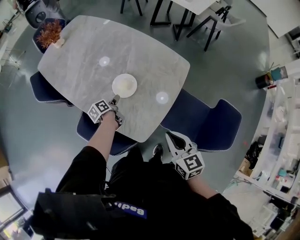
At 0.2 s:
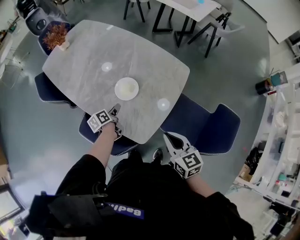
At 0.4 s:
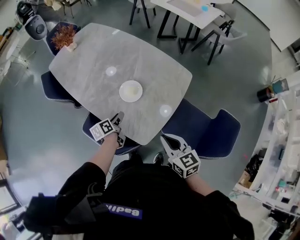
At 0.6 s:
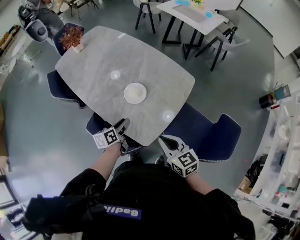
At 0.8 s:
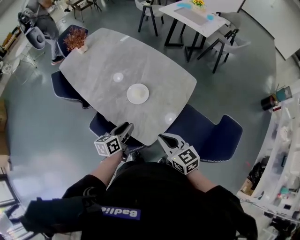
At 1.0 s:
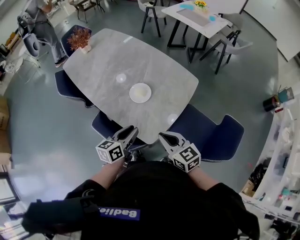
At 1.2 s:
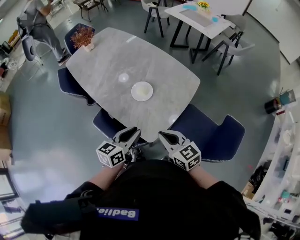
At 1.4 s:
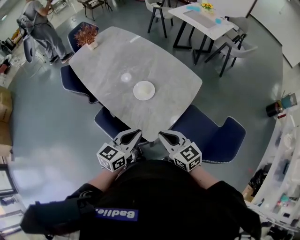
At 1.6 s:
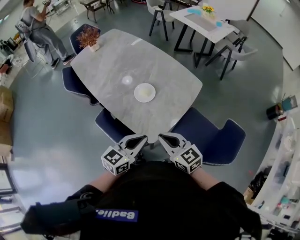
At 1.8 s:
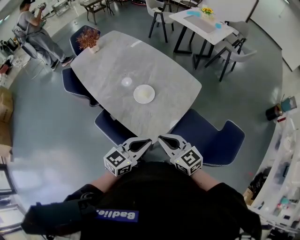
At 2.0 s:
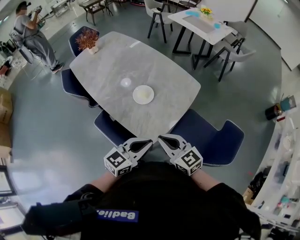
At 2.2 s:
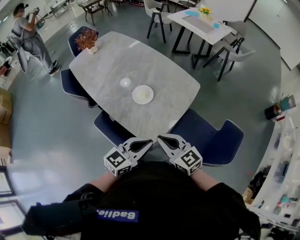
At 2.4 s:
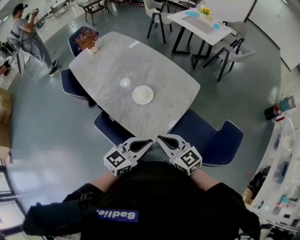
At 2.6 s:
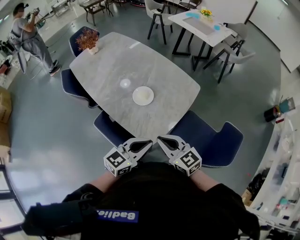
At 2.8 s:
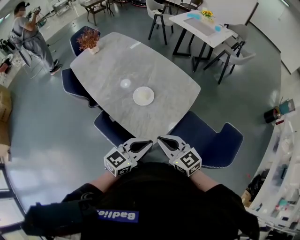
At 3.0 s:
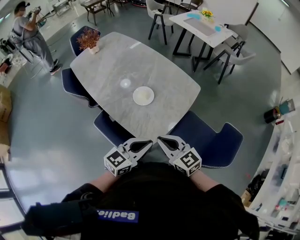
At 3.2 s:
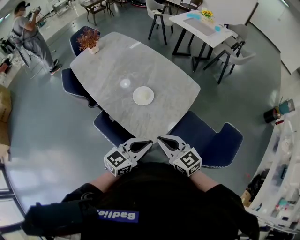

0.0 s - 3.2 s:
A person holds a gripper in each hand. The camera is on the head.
0.0 s - 1.6 s: The right gripper moves roughly 10 cm, and rotates roughly 30 degrees.

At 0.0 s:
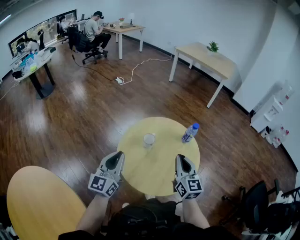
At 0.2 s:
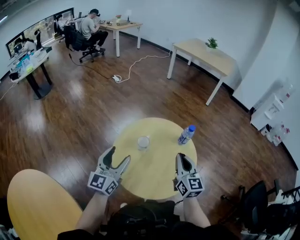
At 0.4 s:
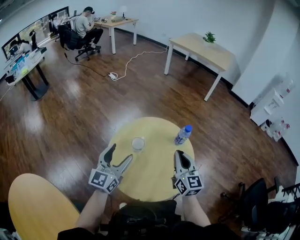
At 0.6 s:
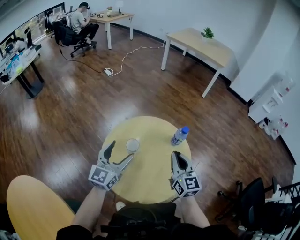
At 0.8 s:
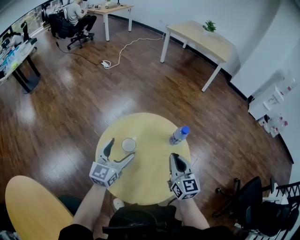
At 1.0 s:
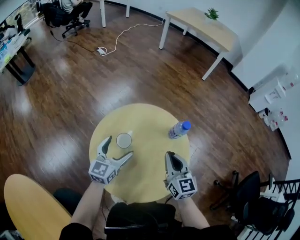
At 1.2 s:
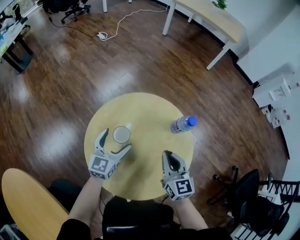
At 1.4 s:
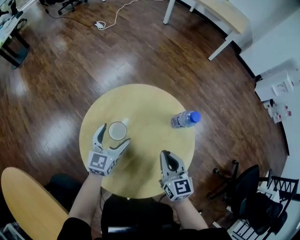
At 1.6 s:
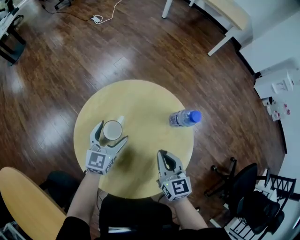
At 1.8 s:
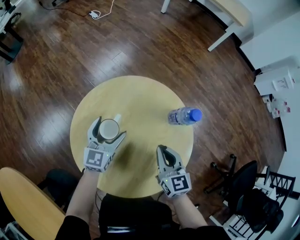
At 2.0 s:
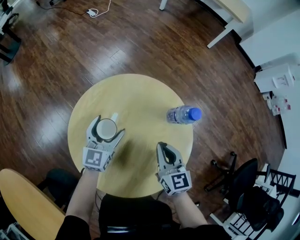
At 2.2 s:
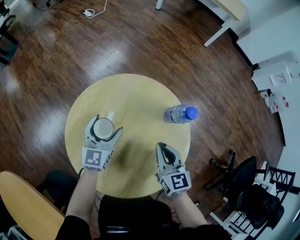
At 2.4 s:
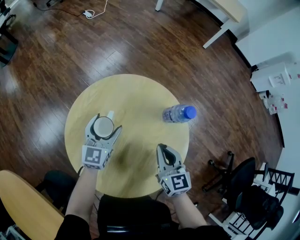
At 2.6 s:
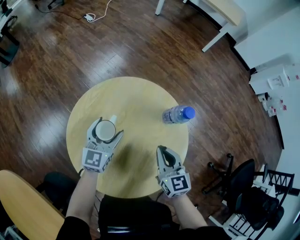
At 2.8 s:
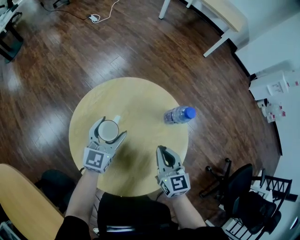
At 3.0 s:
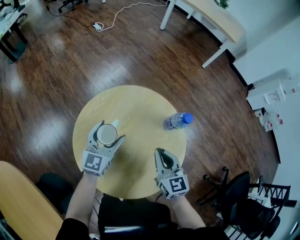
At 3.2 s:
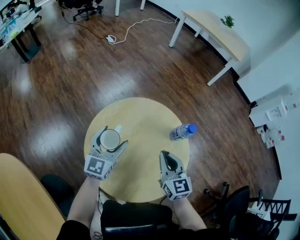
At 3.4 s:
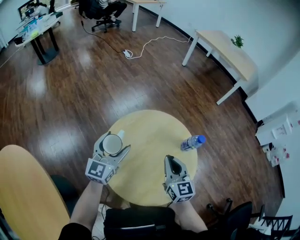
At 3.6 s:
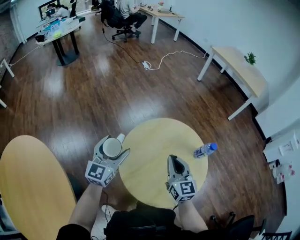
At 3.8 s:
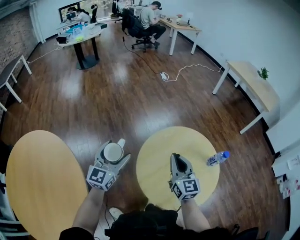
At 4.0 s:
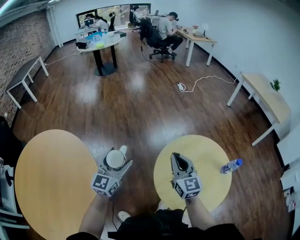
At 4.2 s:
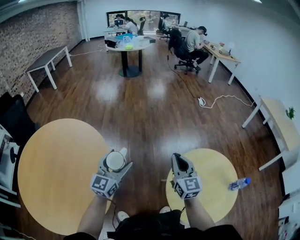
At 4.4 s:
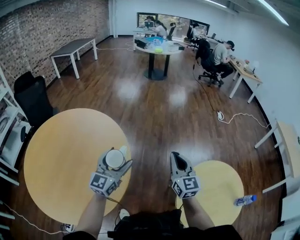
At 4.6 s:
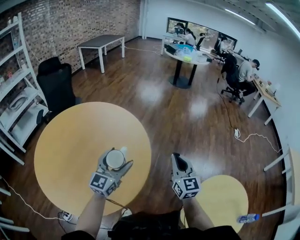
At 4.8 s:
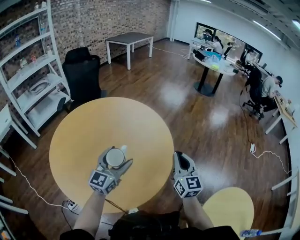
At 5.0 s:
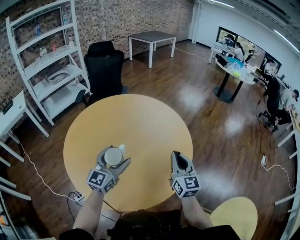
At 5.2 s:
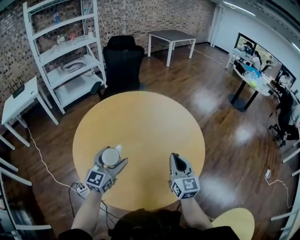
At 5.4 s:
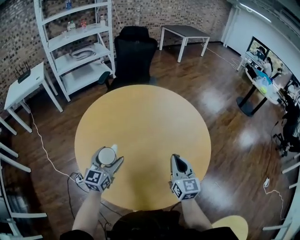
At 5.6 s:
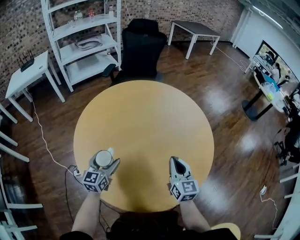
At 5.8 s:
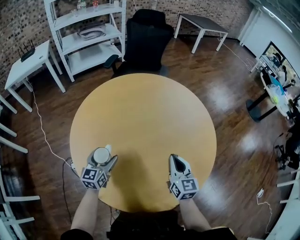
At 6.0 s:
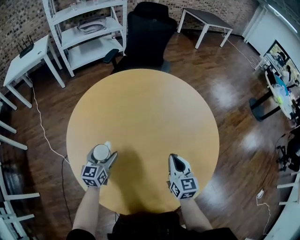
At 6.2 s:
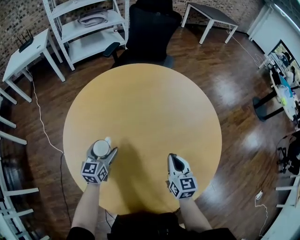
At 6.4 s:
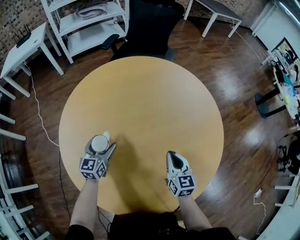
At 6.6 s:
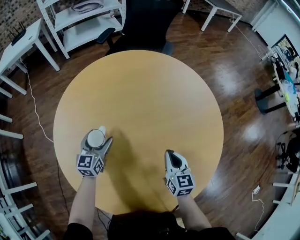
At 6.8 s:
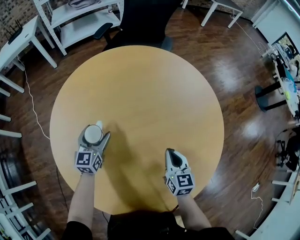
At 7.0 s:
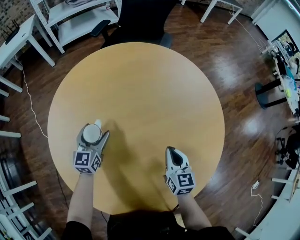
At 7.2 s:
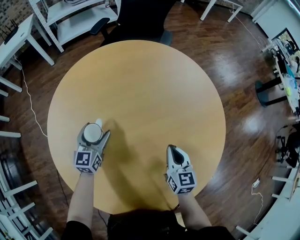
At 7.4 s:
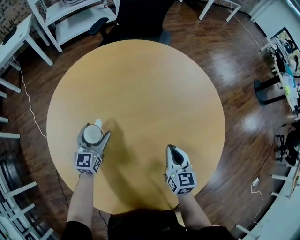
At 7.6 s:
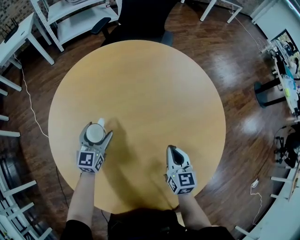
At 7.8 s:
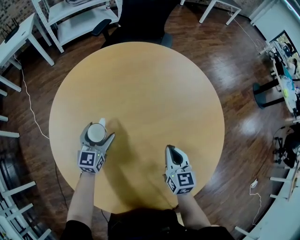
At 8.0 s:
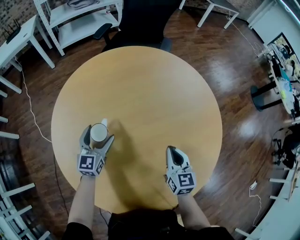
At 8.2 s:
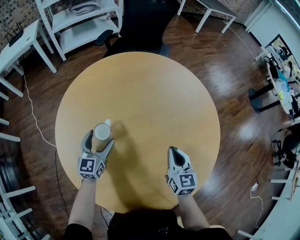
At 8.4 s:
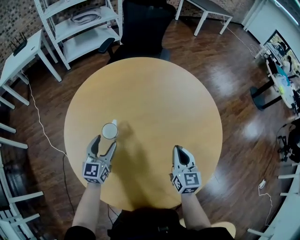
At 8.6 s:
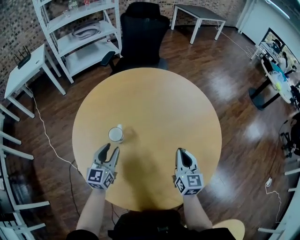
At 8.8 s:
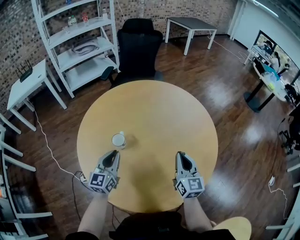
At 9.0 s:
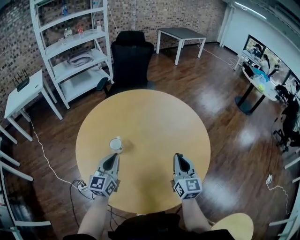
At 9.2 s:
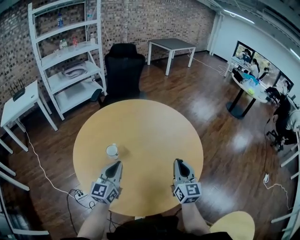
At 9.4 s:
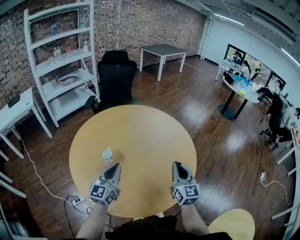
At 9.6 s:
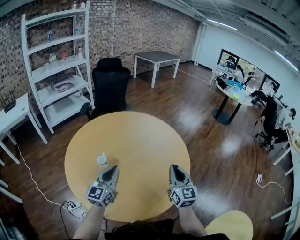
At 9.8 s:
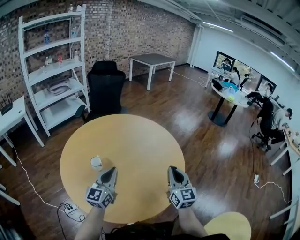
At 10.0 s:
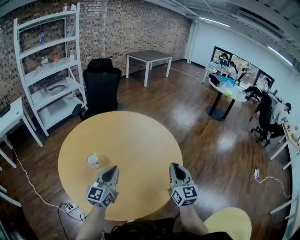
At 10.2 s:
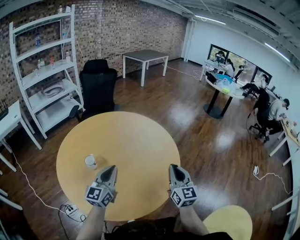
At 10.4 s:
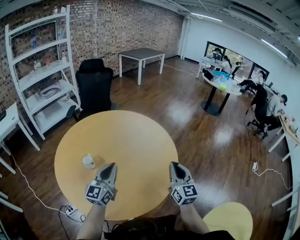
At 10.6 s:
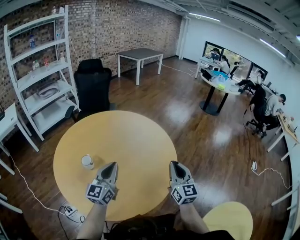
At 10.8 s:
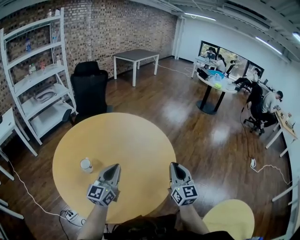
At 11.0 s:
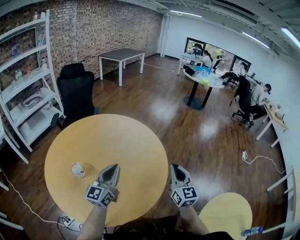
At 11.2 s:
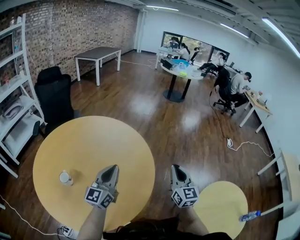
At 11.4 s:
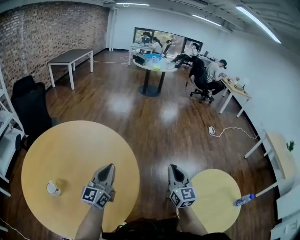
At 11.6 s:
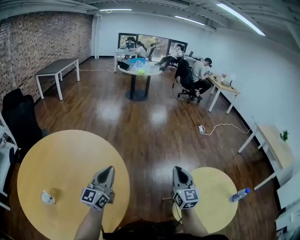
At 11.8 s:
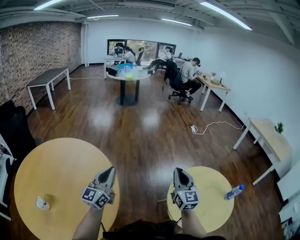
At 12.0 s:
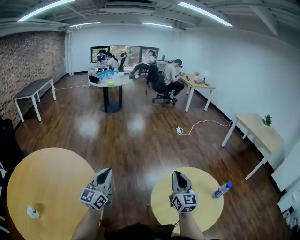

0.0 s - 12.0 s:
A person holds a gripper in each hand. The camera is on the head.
0.0 s - 1.6 s: The right gripper heads downward and forward, covering roughly 20 cm, and turns by about 20 degrees. The left gripper is displaced downward, forward and to the right by about 30 cm, rotates approximately 20 degrees, and opens up.
1.6 s - 3.0 s: There are only small adjustments of the grippers.
3.0 s - 4.4 s: The pair of grippers is taken roughly 50 cm. The left gripper swivels approximately 60 degrees. Meanwhile the right gripper changes its angle by some 60 degrees.
4.4 s - 6.0 s: Both grippers are carried about 50 cm. The left gripper changes its angle by some 70 degrees, while the right gripper rotates some 50 degrees.
6.0 s - 7.6 s: The right gripper is displaced downward by about 5 cm, while the left gripper moves forward, some 10 cm.
7.6 s - 9.0 s: The grippers both shift upward and backward by about 20 cm. The right gripper rotates about 30 degrees, while the left gripper changes its angle by some 20 degrees, and closes up.
9.0 s - 10.4 s: The left gripper shifts about 15 cm to the right and upward. Meanwhile the right gripper is displaced to the right and backward by some 15 cm.
10.4 s - 12.0 s: The right gripper changes place by approximately 50 cm, and changes its angle by some 50 degrees, while the left gripper moves about 40 cm, and changes its angle by some 50 degrees.

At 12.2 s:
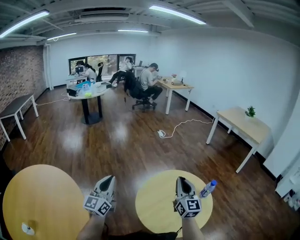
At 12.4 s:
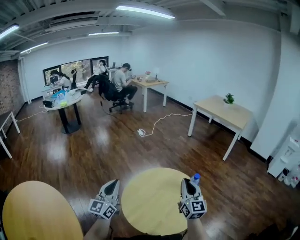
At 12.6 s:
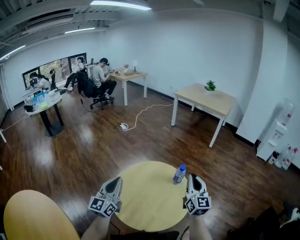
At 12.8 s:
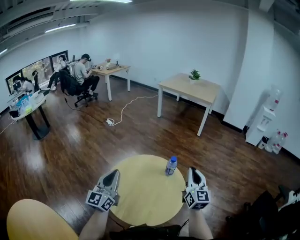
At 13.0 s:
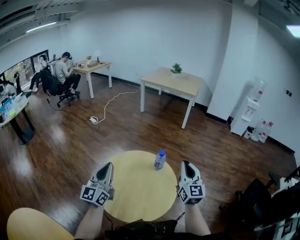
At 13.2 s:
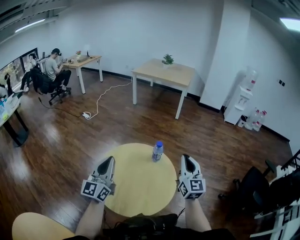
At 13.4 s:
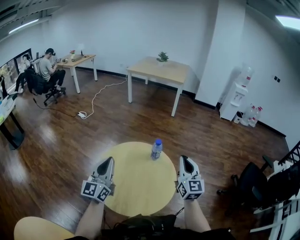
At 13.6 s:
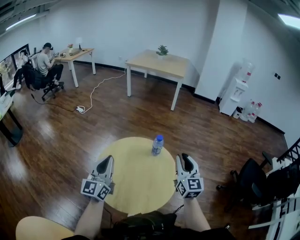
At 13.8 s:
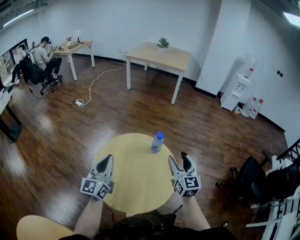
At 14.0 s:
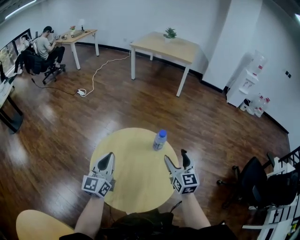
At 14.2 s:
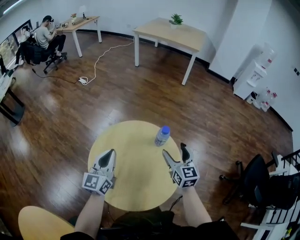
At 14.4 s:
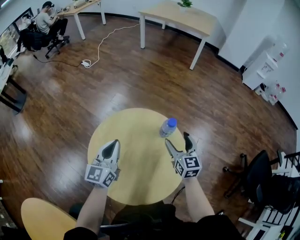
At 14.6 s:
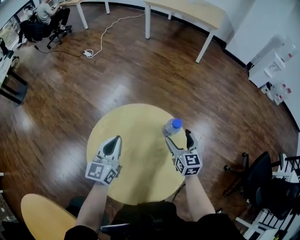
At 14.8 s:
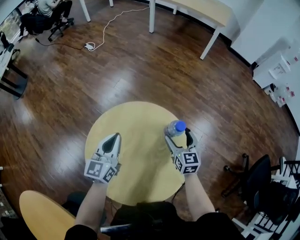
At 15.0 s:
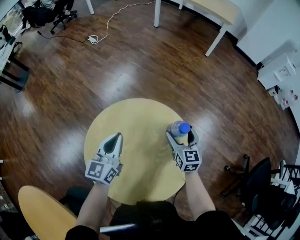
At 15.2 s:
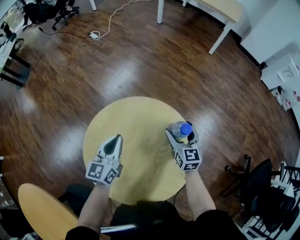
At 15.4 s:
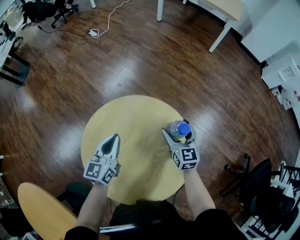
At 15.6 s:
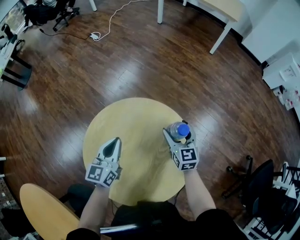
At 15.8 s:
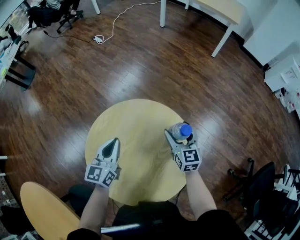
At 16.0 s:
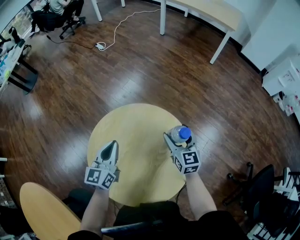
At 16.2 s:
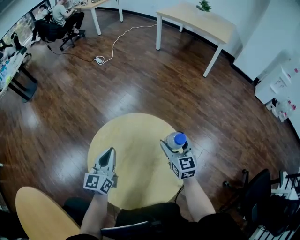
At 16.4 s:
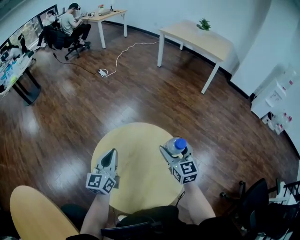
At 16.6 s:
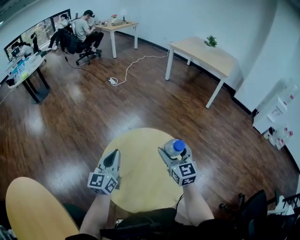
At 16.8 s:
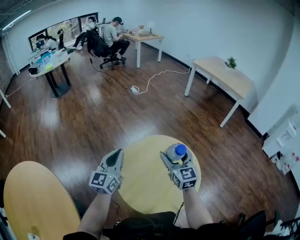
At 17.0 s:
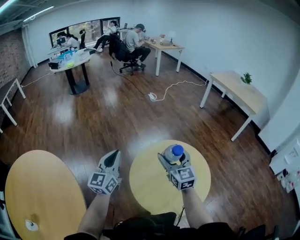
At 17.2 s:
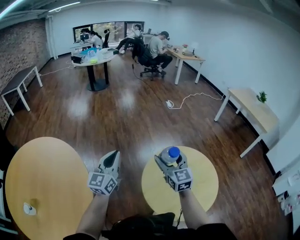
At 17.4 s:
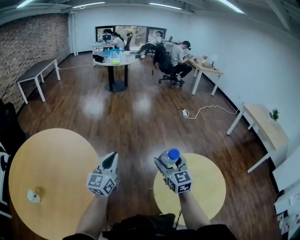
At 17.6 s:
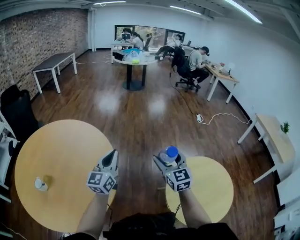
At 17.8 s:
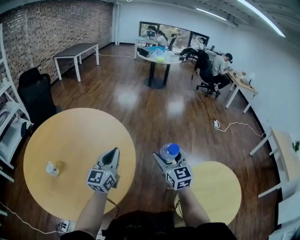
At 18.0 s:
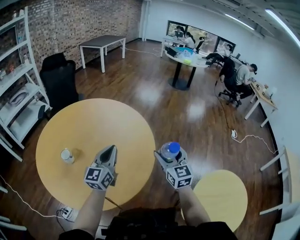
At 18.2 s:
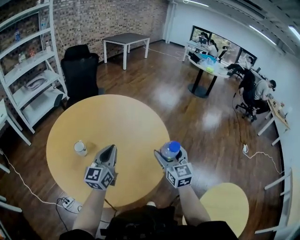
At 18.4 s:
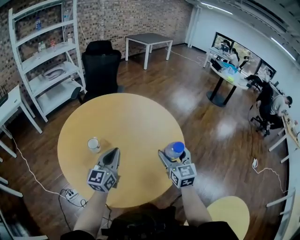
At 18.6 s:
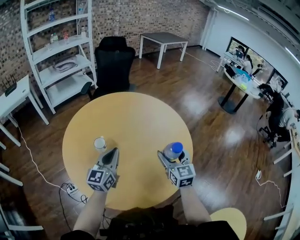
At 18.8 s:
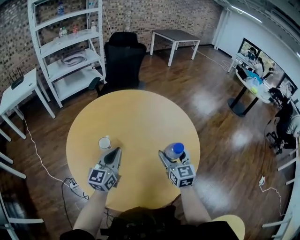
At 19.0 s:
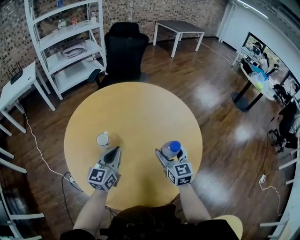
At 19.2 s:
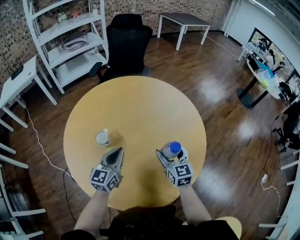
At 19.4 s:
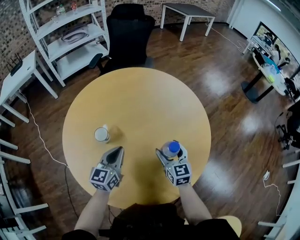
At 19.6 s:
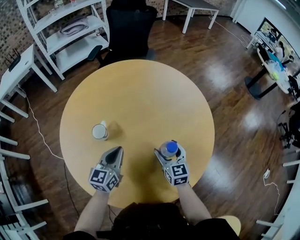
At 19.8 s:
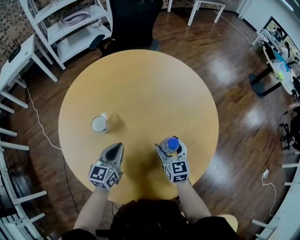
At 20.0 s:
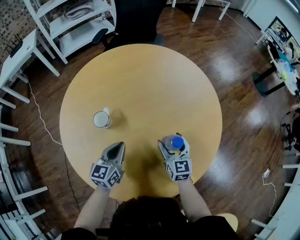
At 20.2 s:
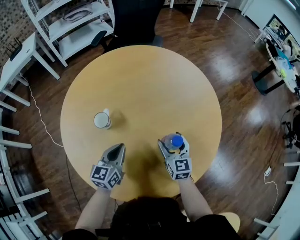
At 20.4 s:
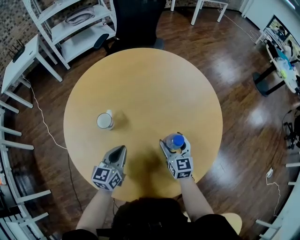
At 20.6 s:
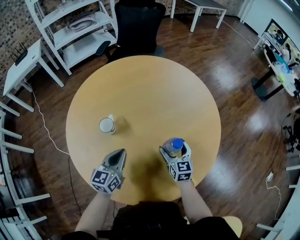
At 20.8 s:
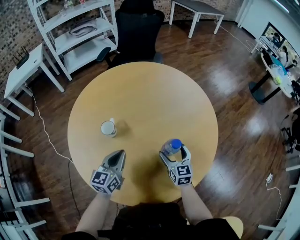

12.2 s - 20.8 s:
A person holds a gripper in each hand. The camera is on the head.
12.2 s - 13.6 s: The right gripper shifts by about 25 cm, and swivels some 50 degrees, while the left gripper shifts by some 30 cm, and rotates roughly 40 degrees.
13.6 s - 15.0 s: Both grippers move downward and forward, about 25 cm. The left gripper changes its angle by roughly 30 degrees. The right gripper swivels roughly 30 degrees, and opens its fingers.
15.0 s - 16.6 s: The left gripper goes roughly 15 cm upward, to the left and backward. The right gripper travels upward and to the left by roughly 20 cm, and swivels roughly 30 degrees.
16.6 s - 18.0 s: The two grippers travel together, roughly 70 cm. The left gripper rotates roughly 70 degrees. The right gripper turns by about 70 degrees.
18.0 s - 19.4 s: The left gripper ends up roughly 25 cm from where it was, and changes its angle by approximately 30 degrees. The right gripper moves approximately 35 cm, and swivels roughly 30 degrees.
19.4 s - 20.8 s: The right gripper goes roughly 5 cm downward; the left gripper changes place by some 5 cm.
